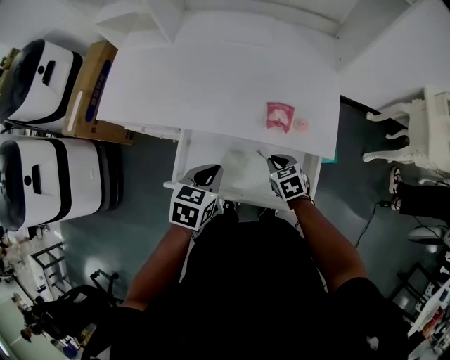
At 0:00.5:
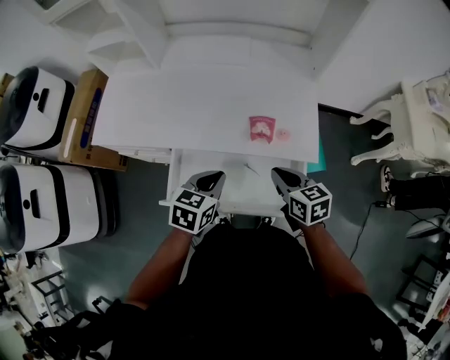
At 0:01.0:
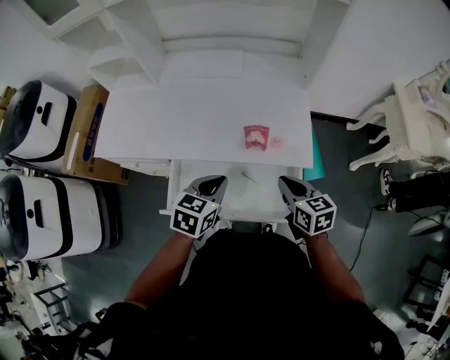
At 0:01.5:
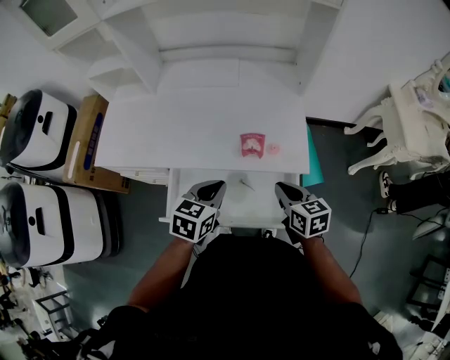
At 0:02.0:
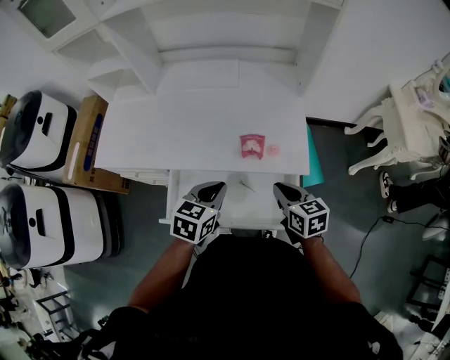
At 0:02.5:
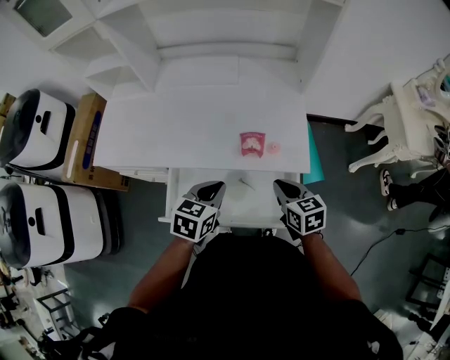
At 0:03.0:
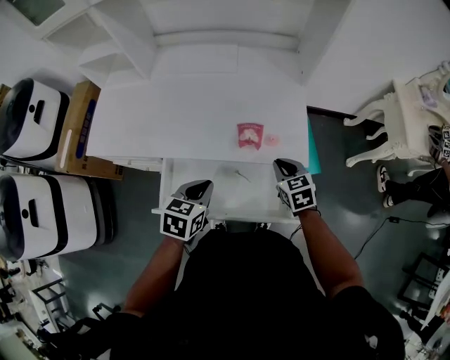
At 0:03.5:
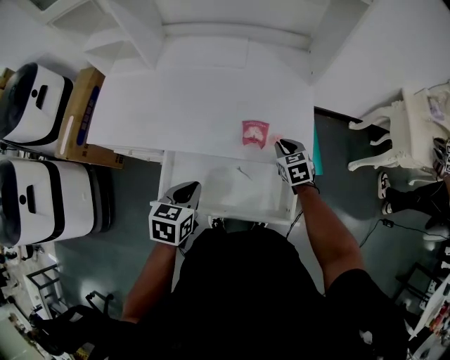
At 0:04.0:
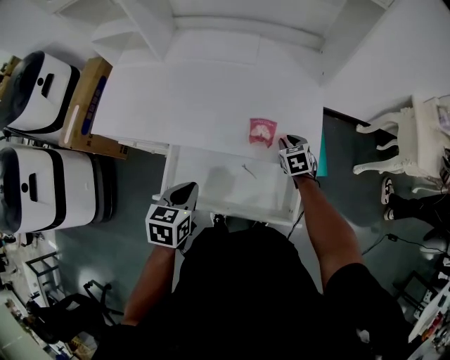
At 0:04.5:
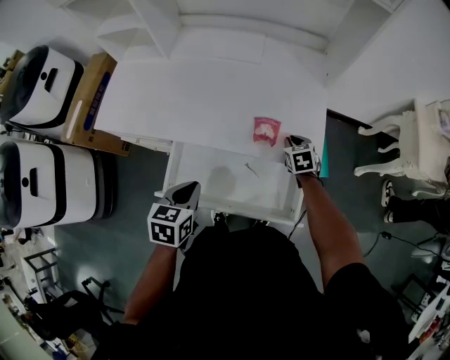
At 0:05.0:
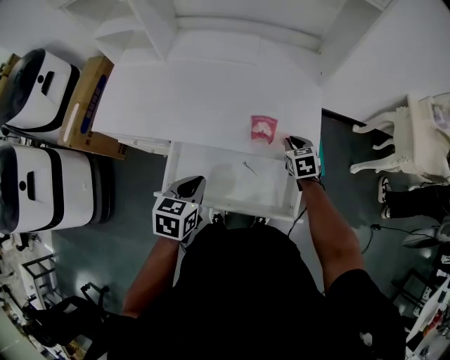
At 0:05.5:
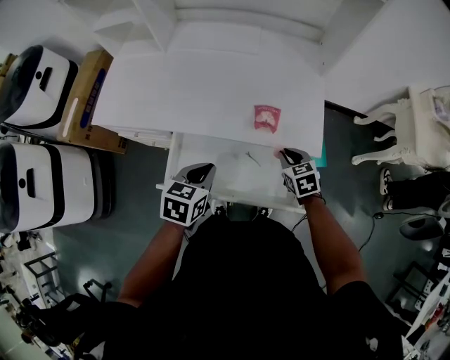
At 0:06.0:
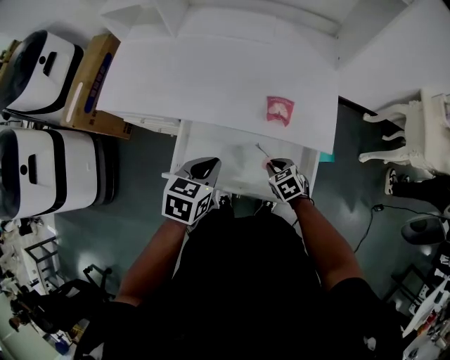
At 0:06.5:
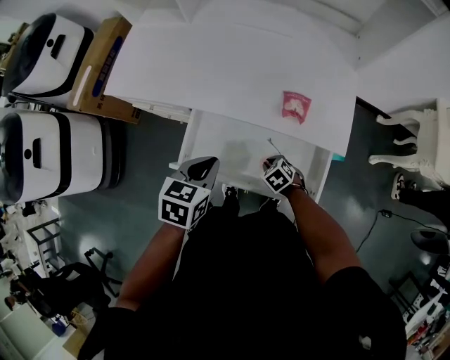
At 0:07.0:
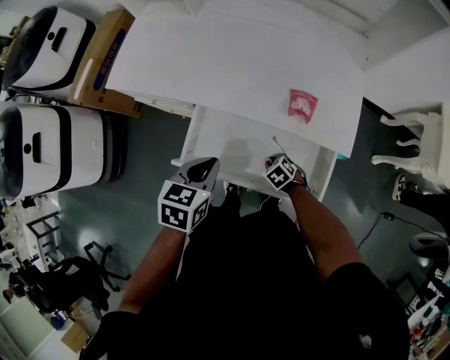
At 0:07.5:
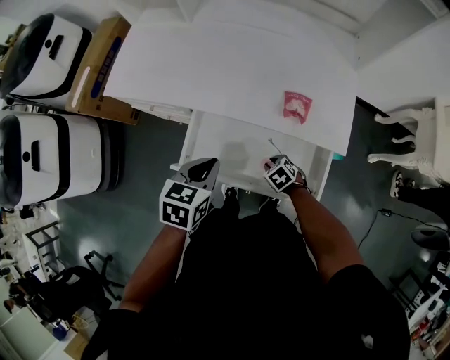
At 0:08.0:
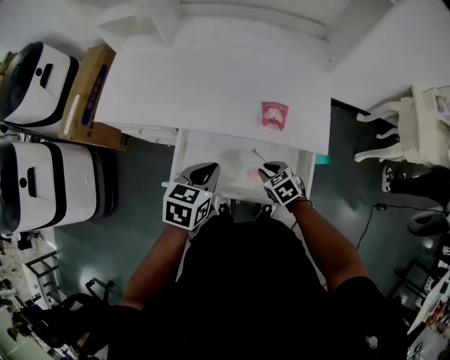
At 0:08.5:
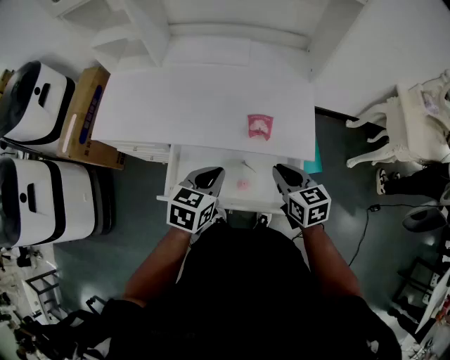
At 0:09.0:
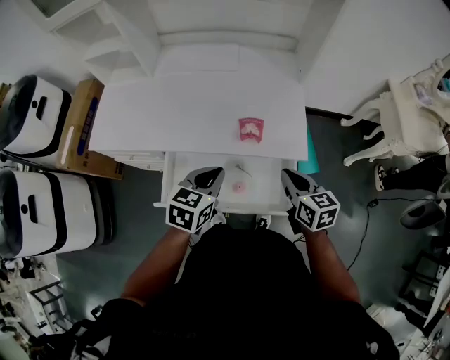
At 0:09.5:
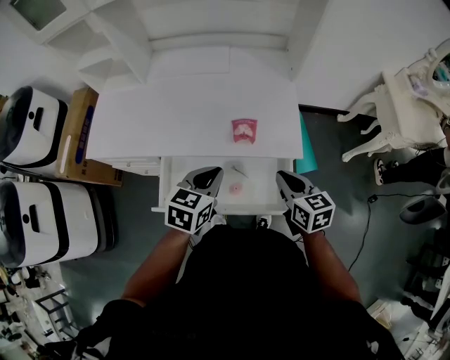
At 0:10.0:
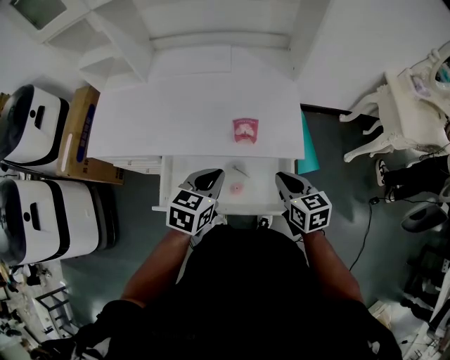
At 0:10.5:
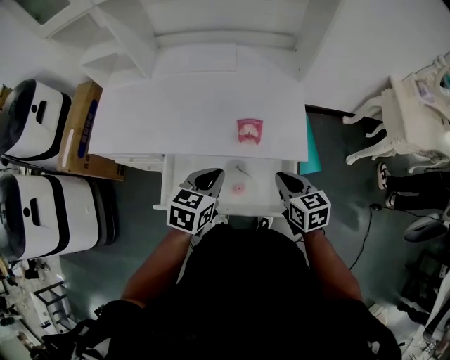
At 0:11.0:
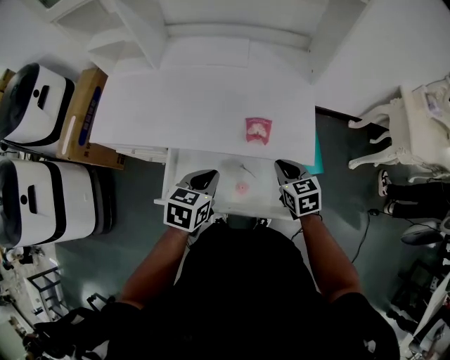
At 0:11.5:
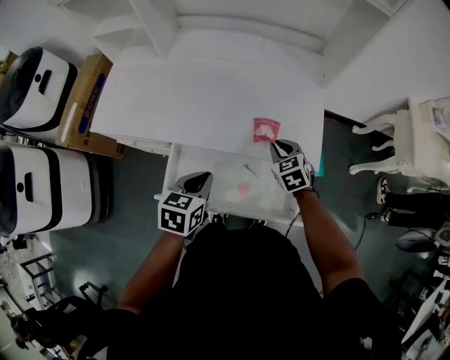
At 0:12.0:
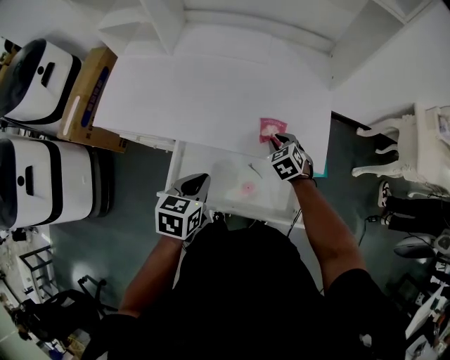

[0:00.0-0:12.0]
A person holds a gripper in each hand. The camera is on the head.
0:00.0 to 0:02.0: The left gripper goes approximately 10 cm to the right and upward, while the right gripper shifts approximately 20 cm upward and to the right, and rotates some 30 degrees.
0:02.0 to 0:04.0: The left gripper moves to the left, some 10 cm, while the right gripper shifts about 20 cm forward and downward, and changes its angle by about 30 degrees.
0:04.0 to 0:06.0: The right gripper is displaced backward and to the left by roughly 20 cm.
0:06.0 to 0:08.0: The right gripper travels downward and back again, some 10 cm each way.
0:08.0 to 0:10.0: The right gripper is displaced upward and to the right by roughly 20 cm, and turns by some 40 degrees; the left gripper goes about 10 cm to the right.
0:10.0 to 0:12.0: The right gripper travels forward, downward and to the left by some 20 cm, and rotates approximately 40 degrees. The left gripper travels to the left by about 10 cm.

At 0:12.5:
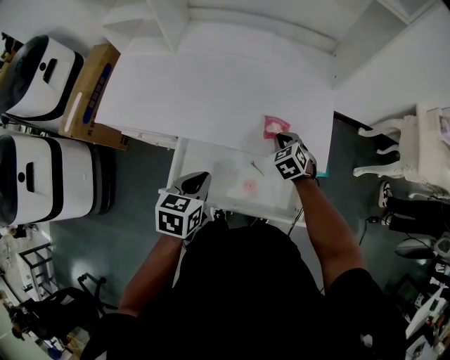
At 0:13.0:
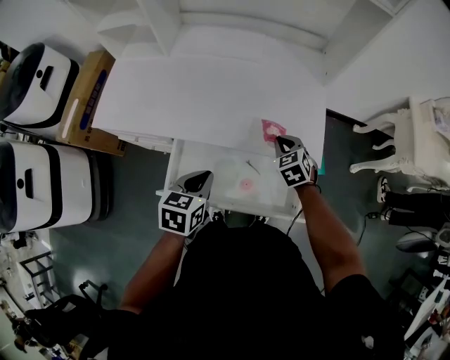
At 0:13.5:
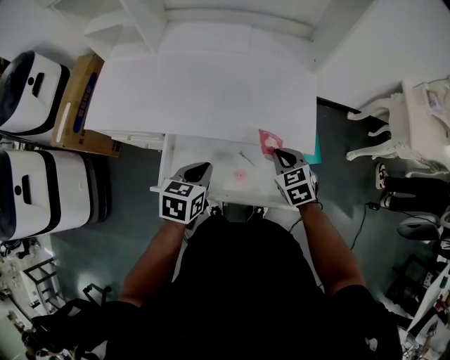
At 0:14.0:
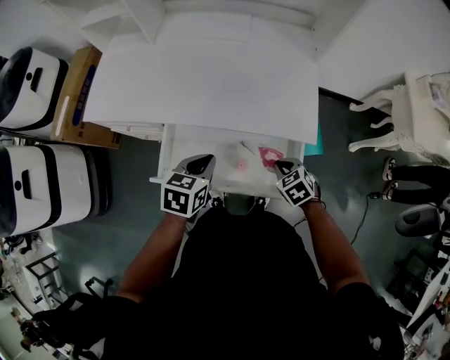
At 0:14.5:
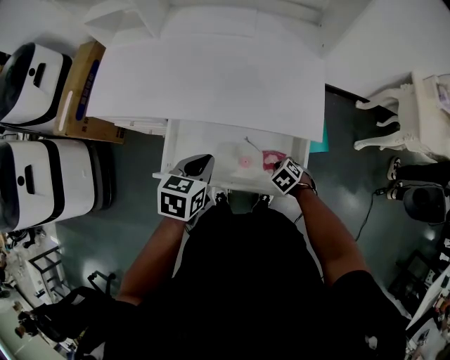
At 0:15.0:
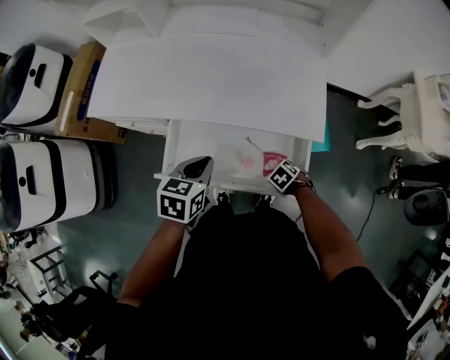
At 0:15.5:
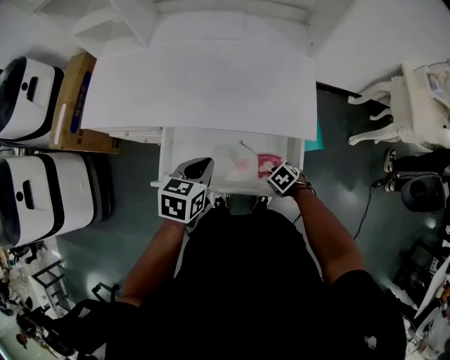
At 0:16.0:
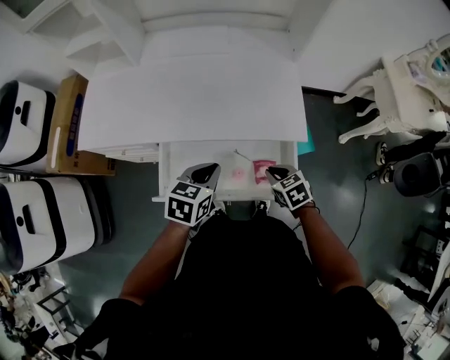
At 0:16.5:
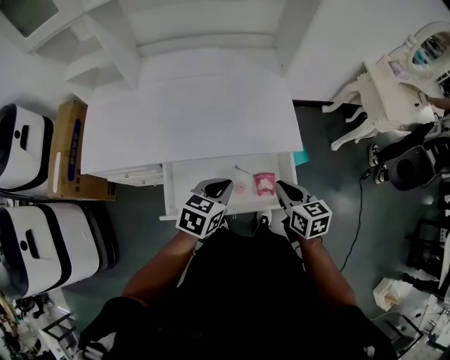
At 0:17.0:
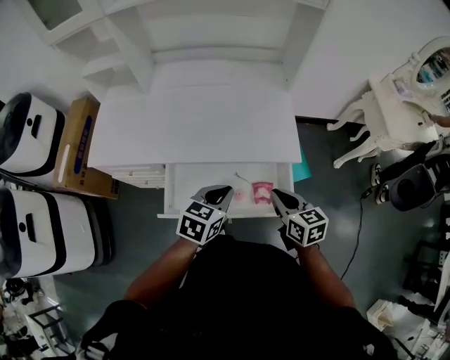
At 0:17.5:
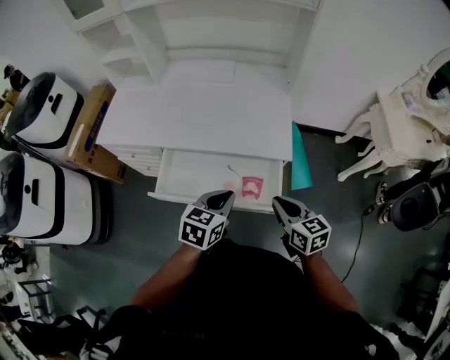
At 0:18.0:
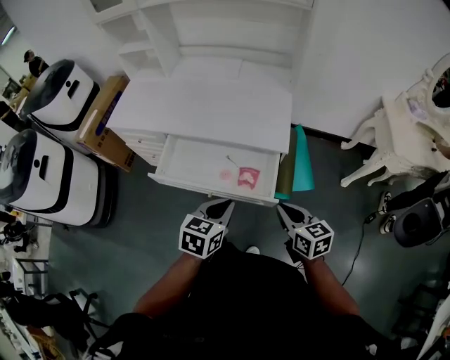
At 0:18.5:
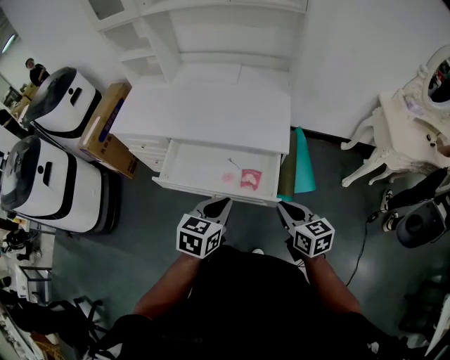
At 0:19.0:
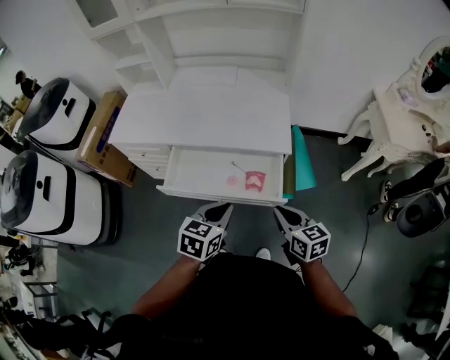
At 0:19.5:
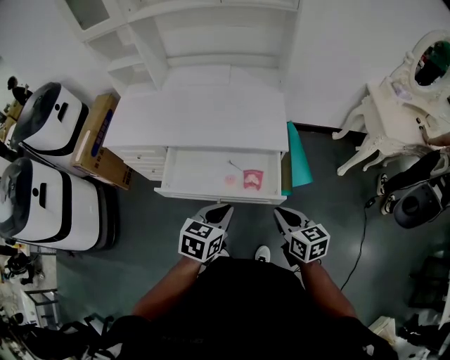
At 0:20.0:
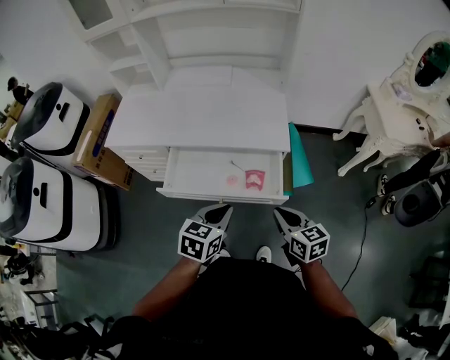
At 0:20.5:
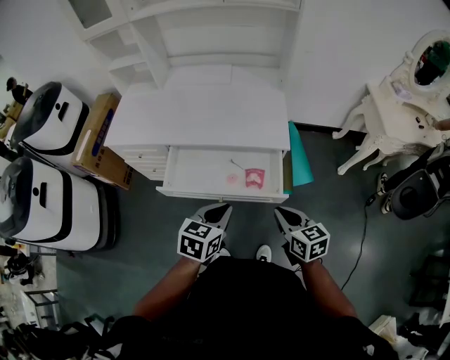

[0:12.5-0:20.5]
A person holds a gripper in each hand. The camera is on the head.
0:12.5 to 0:14.5: The right gripper shifts by approximately 25 cm, and turns by approximately 30 degrees.
0:14.5 to 0:16.5: The left gripper ends up approximately 5 cm from where it was, and turns by some 20 degrees. Meanwhile the right gripper travels upward by about 25 cm, and tips its fingers upward by roughly 40 degrees.
0:16.5 to 0:18.5: Both grippers travel together backward and to the right, some 20 cm. The right gripper swivels some 20 degrees. The left gripper turns by approximately 20 degrees.
0:18.5 to 0:20.5: The right gripper shifts some 5 cm to the left.

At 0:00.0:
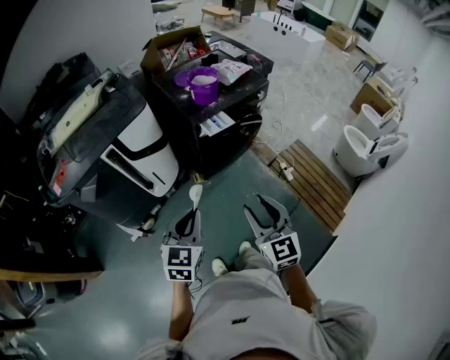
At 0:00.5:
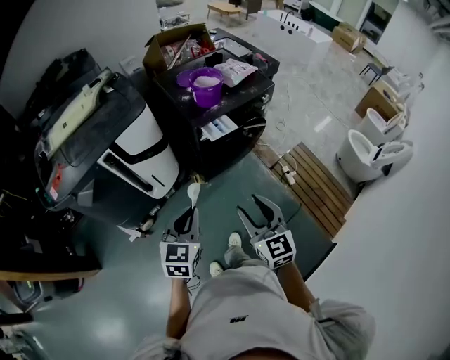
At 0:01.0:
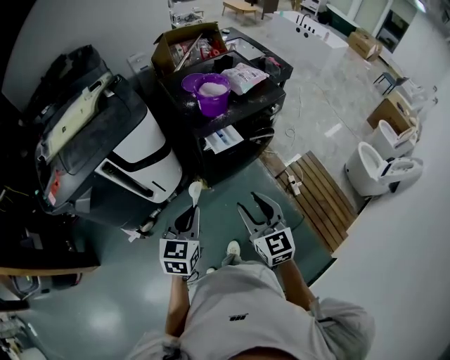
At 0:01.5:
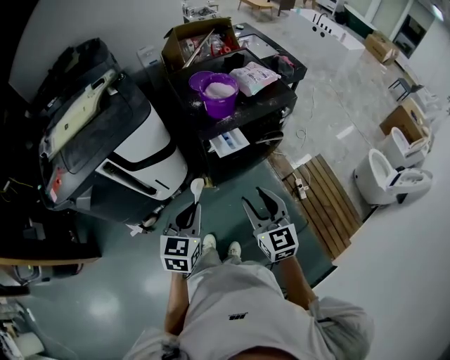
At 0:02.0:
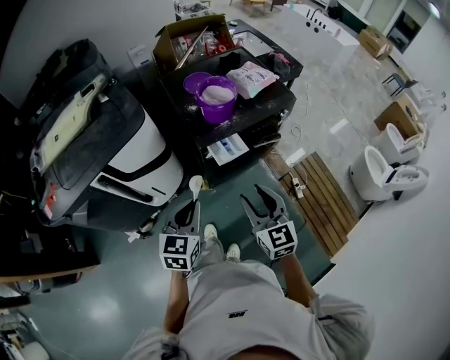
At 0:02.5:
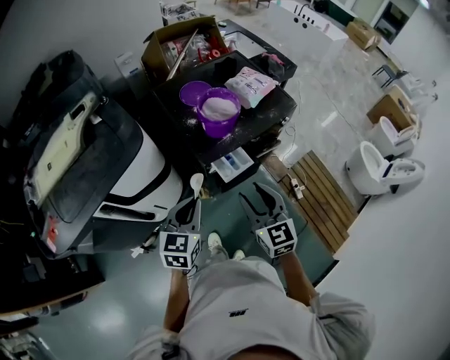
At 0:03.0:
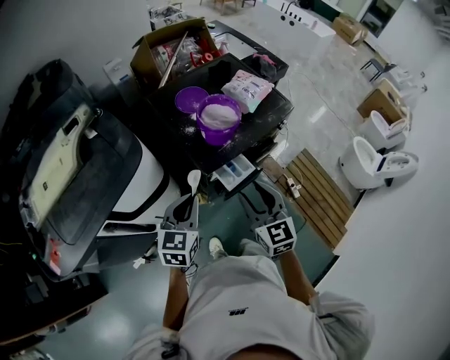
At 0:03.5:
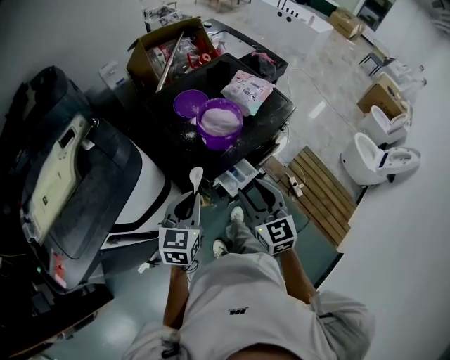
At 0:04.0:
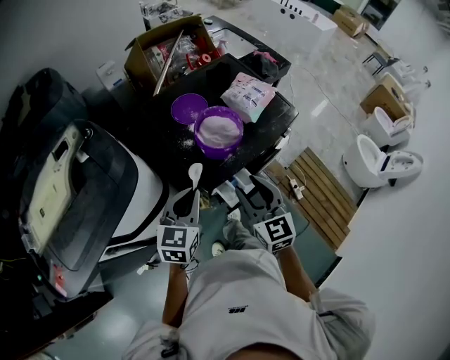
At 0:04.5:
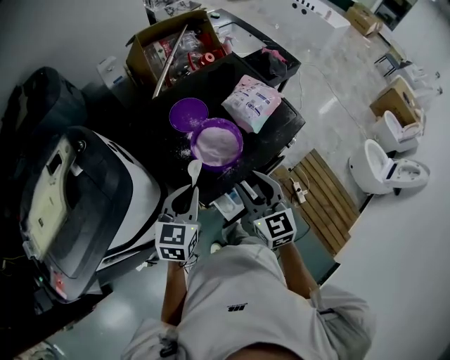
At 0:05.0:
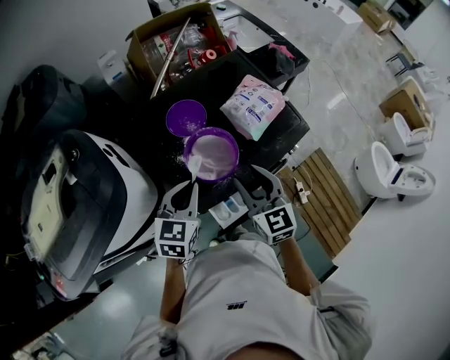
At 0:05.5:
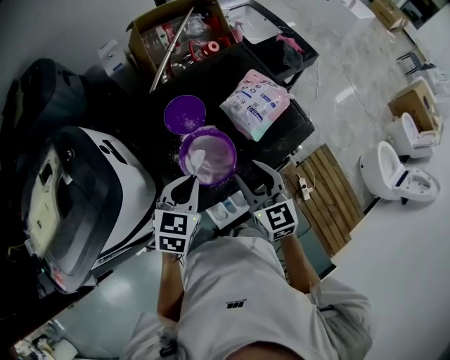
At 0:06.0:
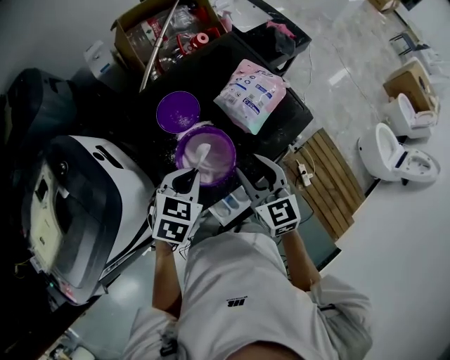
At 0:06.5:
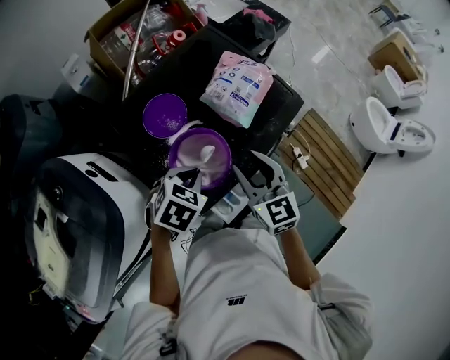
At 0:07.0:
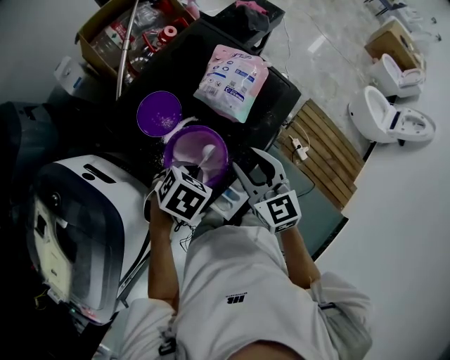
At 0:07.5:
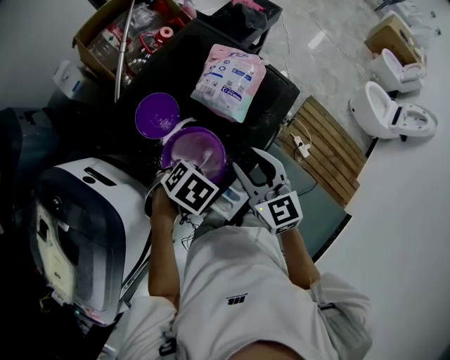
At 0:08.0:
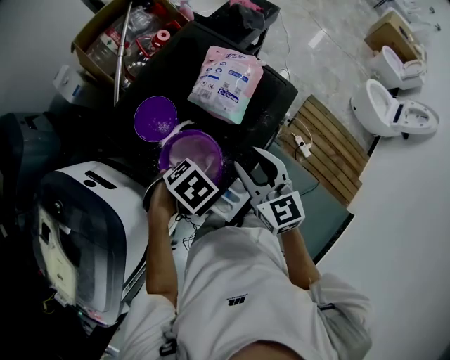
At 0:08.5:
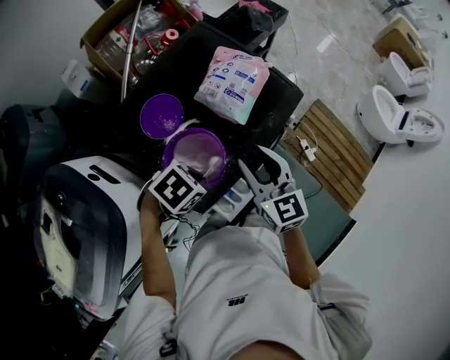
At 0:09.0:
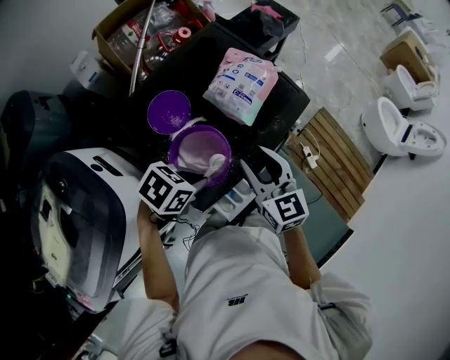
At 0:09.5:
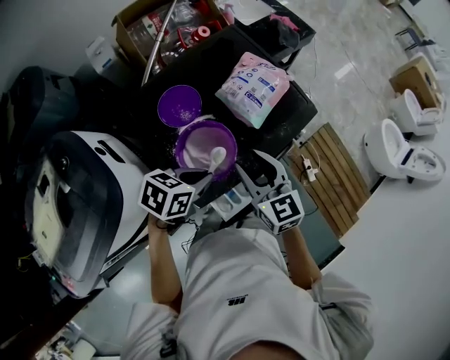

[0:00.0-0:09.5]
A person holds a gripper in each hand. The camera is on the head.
0:00.0 to 0:02.0: Both grippers travel together forward, roughly 25 cm.
0:02.0 to 0:04.0: The grippers both shift forward by approximately 25 cm.
0:04.0 to 0:05.5: The two grippers go approximately 20 cm forward and to the right.
0:05.5 to 0:07.5: The left gripper is displaced downward by some 10 cm, and tilts its fingers approximately 40 degrees downward.
0:07.5 to 0:09.5: The left gripper shifts by roughly 5 cm, and tilts its fingers roughly 30 degrees upward.
